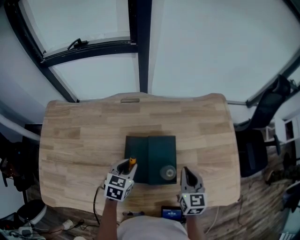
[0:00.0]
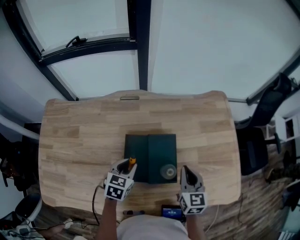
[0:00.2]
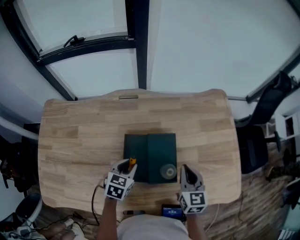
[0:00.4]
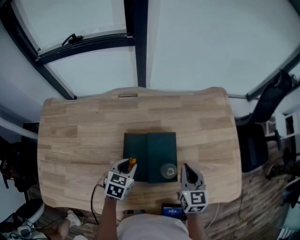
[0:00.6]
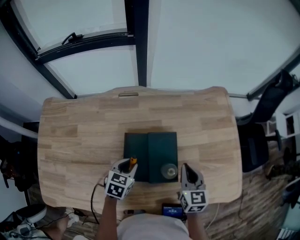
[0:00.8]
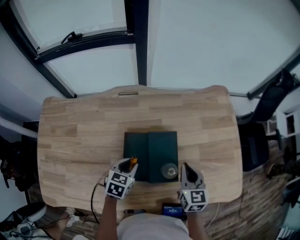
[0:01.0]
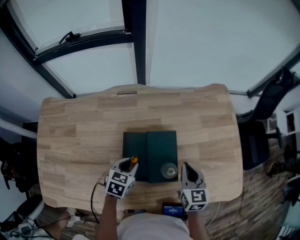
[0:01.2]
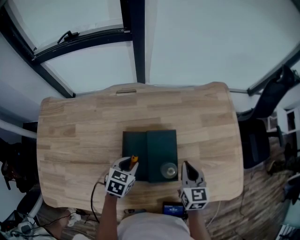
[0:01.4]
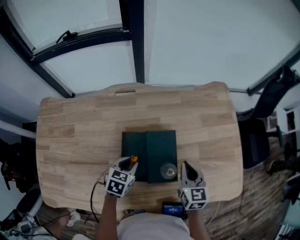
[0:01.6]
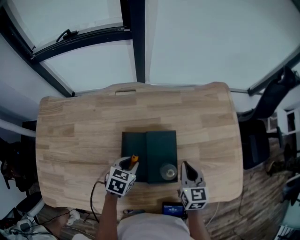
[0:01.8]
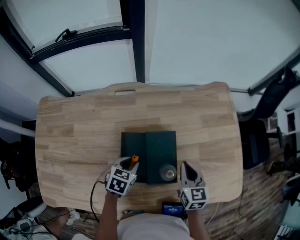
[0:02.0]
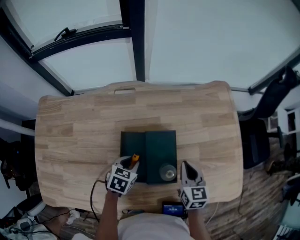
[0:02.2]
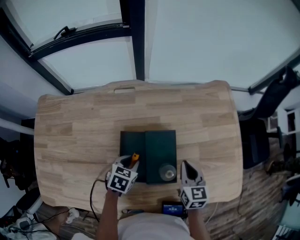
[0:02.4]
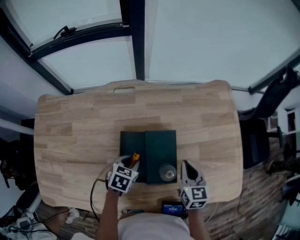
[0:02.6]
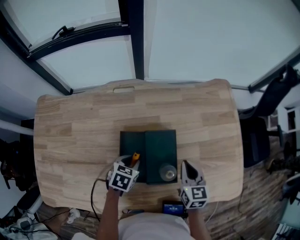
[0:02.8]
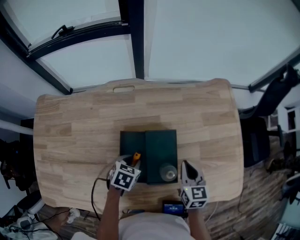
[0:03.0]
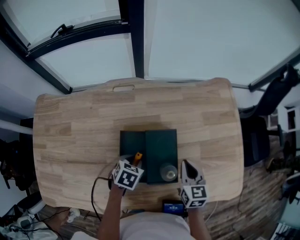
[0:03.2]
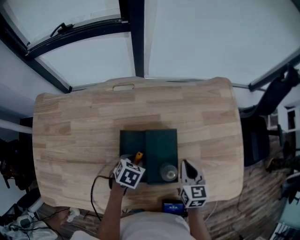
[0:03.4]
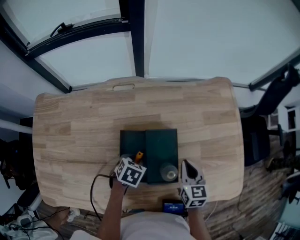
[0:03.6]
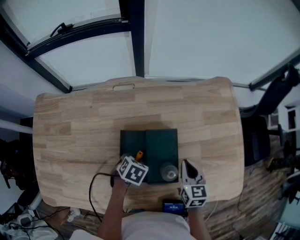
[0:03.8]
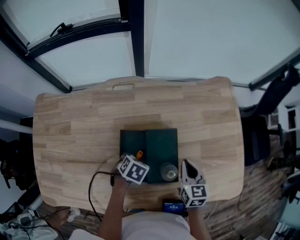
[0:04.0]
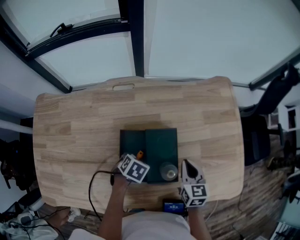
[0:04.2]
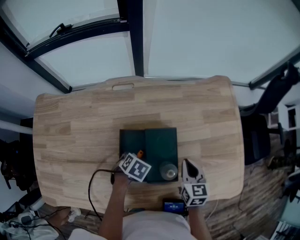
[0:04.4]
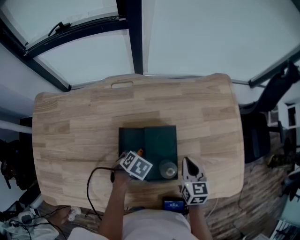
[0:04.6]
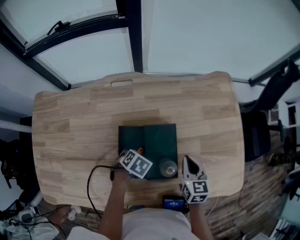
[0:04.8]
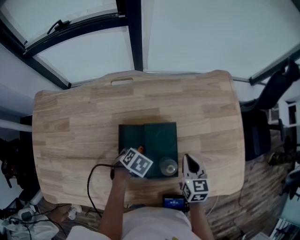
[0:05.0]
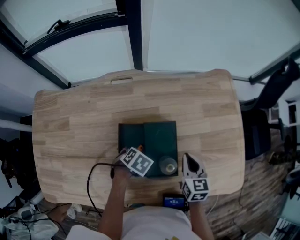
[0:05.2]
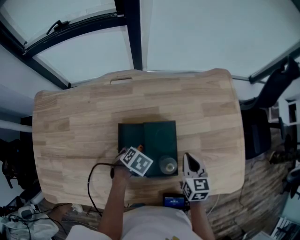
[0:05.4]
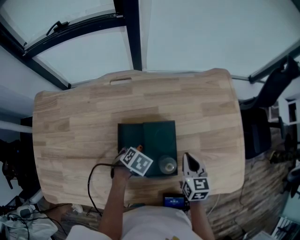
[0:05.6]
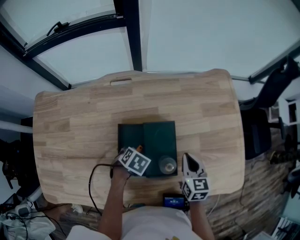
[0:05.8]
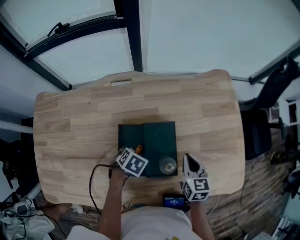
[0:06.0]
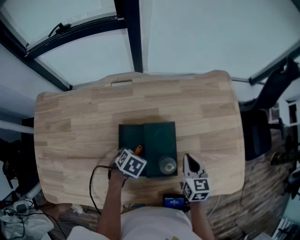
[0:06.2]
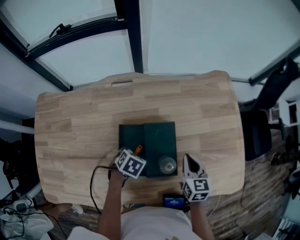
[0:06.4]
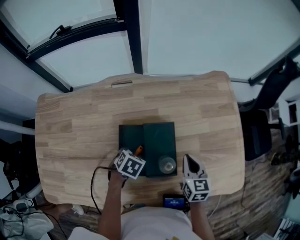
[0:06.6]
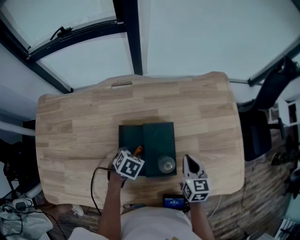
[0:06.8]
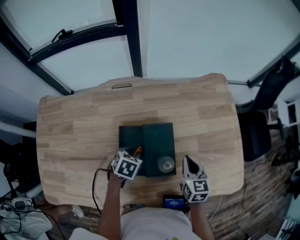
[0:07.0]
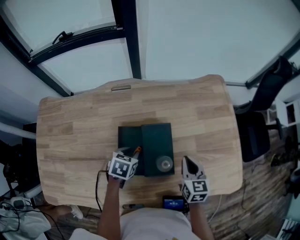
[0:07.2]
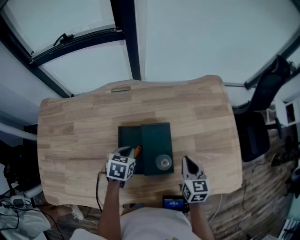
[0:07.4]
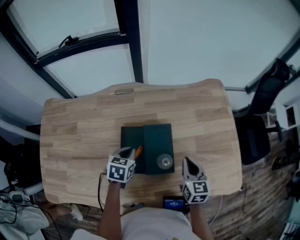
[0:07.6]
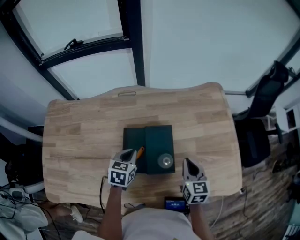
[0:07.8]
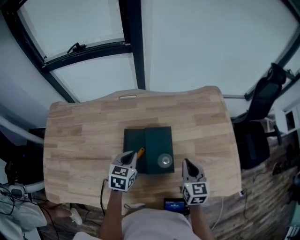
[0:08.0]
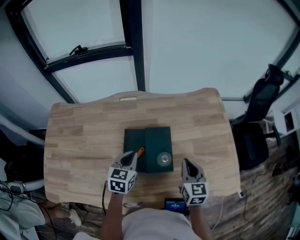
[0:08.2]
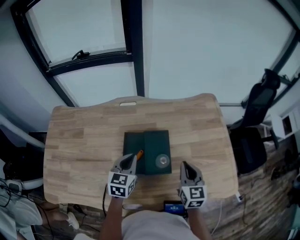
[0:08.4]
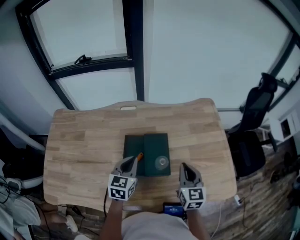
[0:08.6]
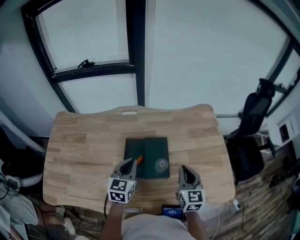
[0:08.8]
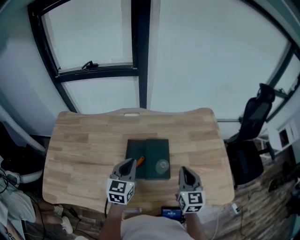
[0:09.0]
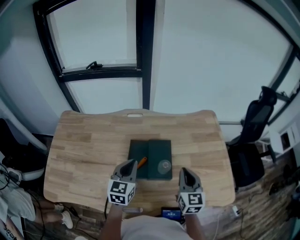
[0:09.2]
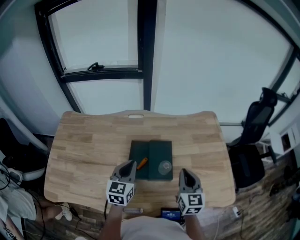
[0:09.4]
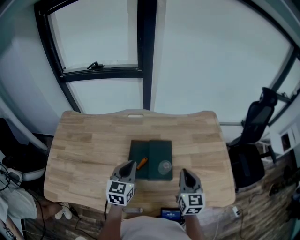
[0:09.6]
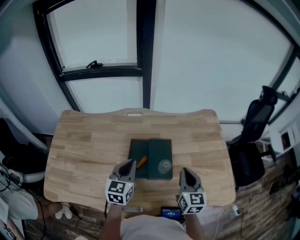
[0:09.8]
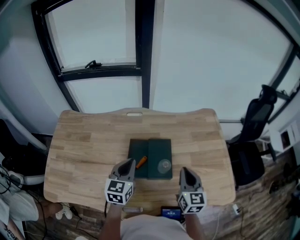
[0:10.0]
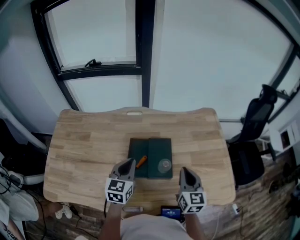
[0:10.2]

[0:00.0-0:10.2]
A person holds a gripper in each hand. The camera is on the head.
0:00.0 to 0:01.4: The grippers stay close to where they were, moving slightly.
0:01.4 to 0:03.0: There are only small adjustments of the grippers.
0:03.0 to 0:04.4: There are only small adjustments of the grippers.
0:04.4 to 0:05.8: The grippers move only a little.
0:05.8 to 0:07.2: The left gripper heads upward, covering roughly 5 cm, and rotates some 20 degrees.
0:07.2 to 0:08.8: The right gripper travels upward by some 10 cm; the left gripper is displaced upward by some 15 cm, points its fingers approximately 40 degrees further upward, and closes its fingers.
0:08.8 to 0:10.2: The grippers make only small movements.

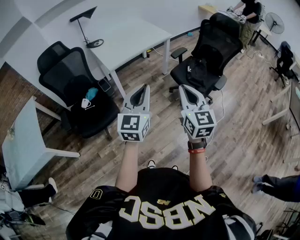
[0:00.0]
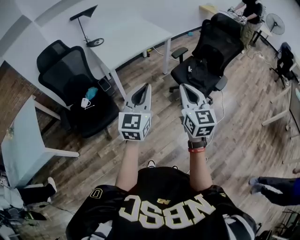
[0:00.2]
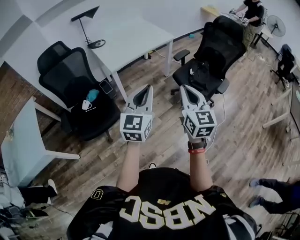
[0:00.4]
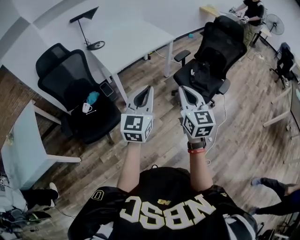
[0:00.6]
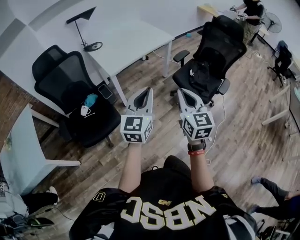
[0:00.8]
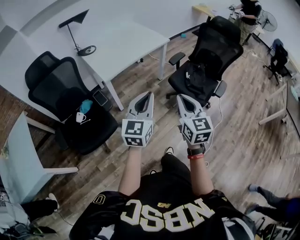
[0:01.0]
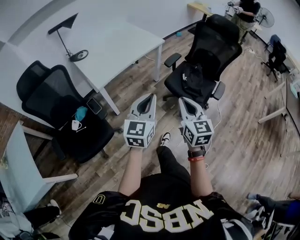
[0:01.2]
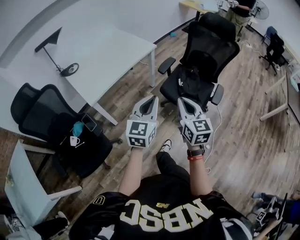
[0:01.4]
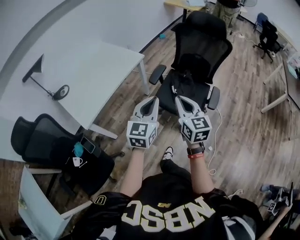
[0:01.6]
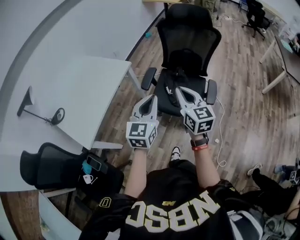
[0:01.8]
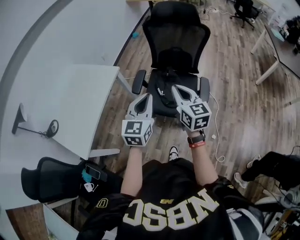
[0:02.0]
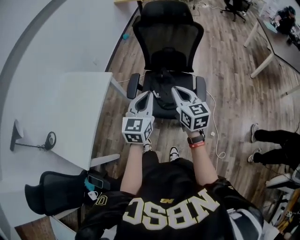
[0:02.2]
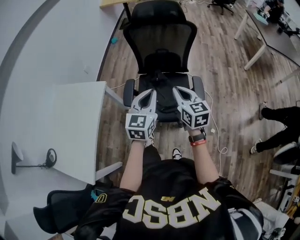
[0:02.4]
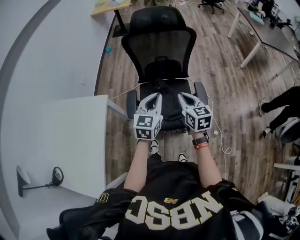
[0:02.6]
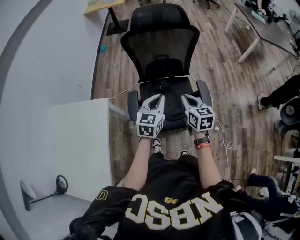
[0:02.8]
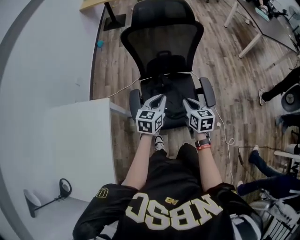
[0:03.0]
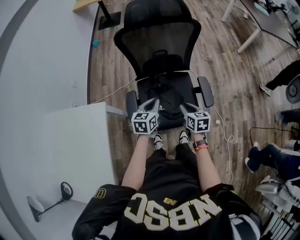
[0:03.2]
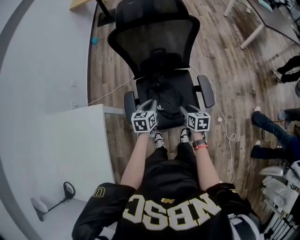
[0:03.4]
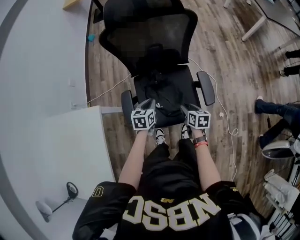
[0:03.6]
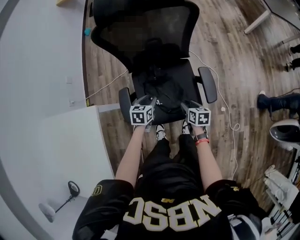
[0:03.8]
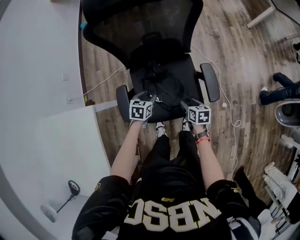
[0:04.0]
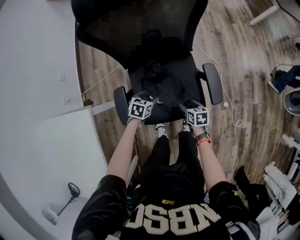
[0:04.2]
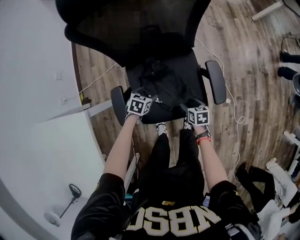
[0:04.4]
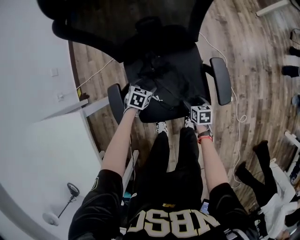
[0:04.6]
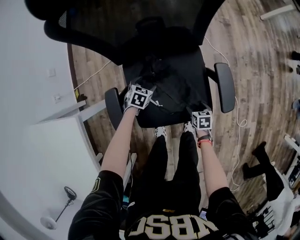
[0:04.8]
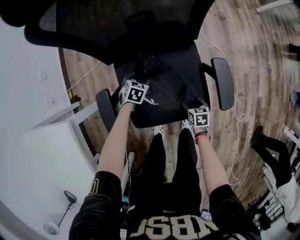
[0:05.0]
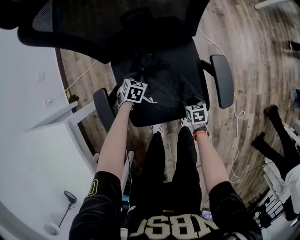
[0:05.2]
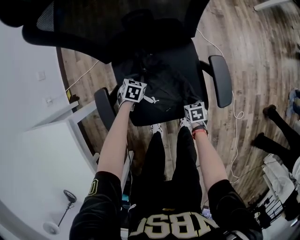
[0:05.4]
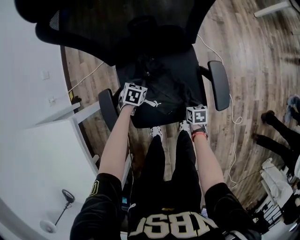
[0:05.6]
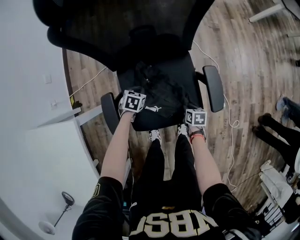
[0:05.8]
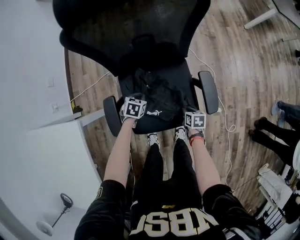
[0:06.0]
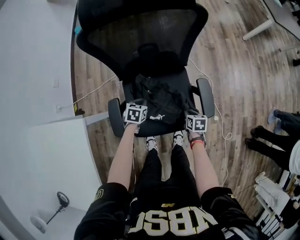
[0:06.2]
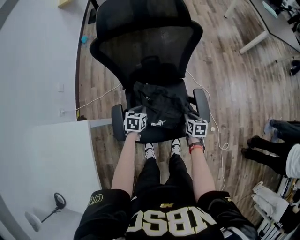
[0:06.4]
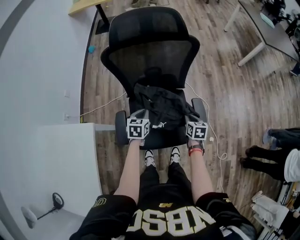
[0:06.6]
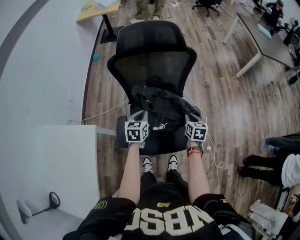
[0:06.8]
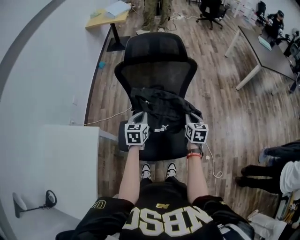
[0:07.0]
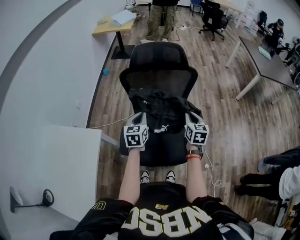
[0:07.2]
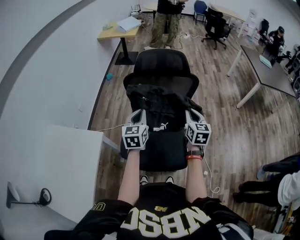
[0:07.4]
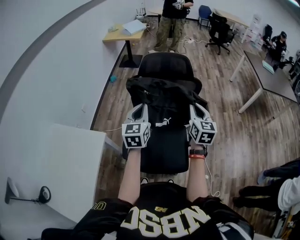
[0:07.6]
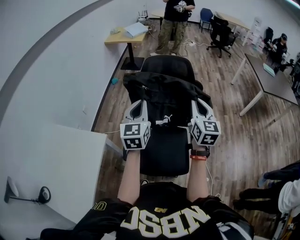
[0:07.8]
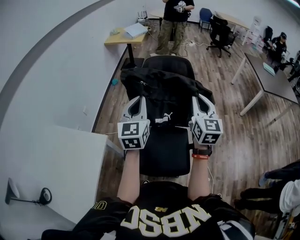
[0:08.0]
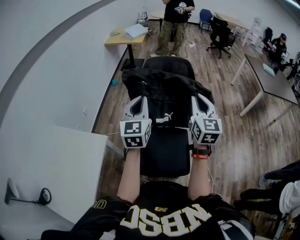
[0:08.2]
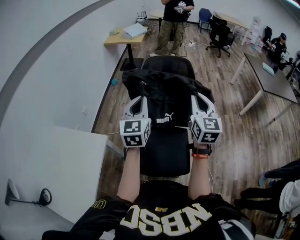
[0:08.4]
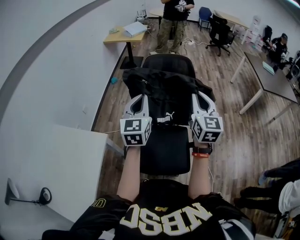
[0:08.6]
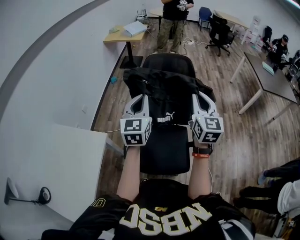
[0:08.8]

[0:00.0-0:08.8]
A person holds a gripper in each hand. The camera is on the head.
0:00.0 to 0:01.4: The left gripper travels forward by about 25 cm; the right gripper moves forward and downward, about 25 cm.
0:01.4 to 0:03.0: The pair of grippers is taken about 40 cm. The left gripper turns by roughly 50 degrees. Meanwhile the right gripper rotates some 50 degrees.
0:03.0 to 0:04.4: The grippers both shift downward by about 35 cm. The right gripper swivels about 30 degrees, and opens its fingers; the left gripper points its fingers roughly 40 degrees further downward, and opens up.
0:04.4 to 0:05.8: The right gripper heads downward, covering about 5 cm, and closes, while the left gripper shifts some 5 cm forward, and closes its fingers.
0:05.8 to 0:07.4: The grippers both shift upward by about 50 cm. The left gripper tilts its fingers approximately 50 degrees upward. The right gripper tilts its fingers about 50 degrees upward.
0:07.4 to 0:08.8: The two grippers go about 15 cm upward. The right gripper turns by some 20 degrees.

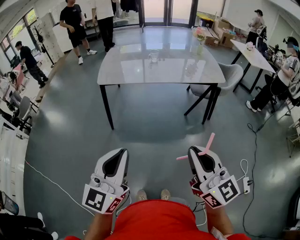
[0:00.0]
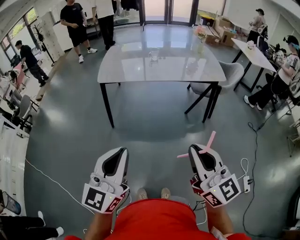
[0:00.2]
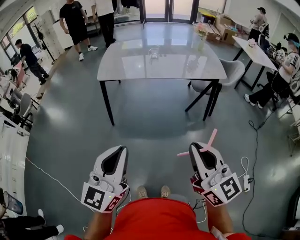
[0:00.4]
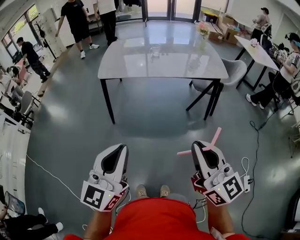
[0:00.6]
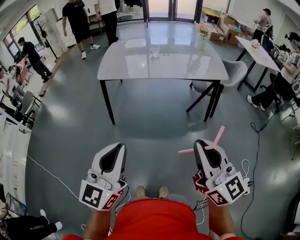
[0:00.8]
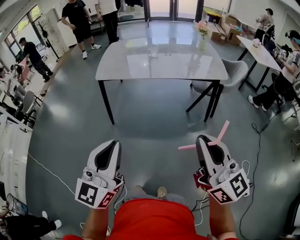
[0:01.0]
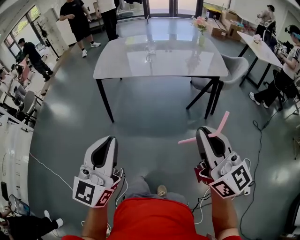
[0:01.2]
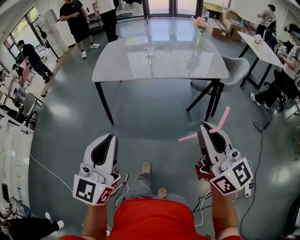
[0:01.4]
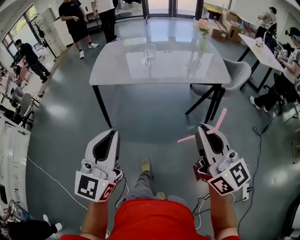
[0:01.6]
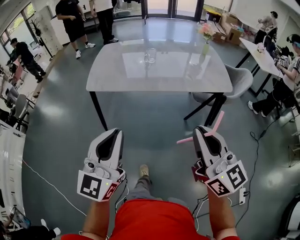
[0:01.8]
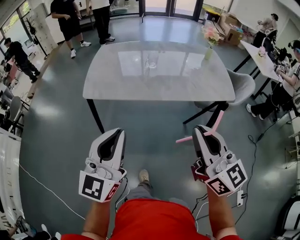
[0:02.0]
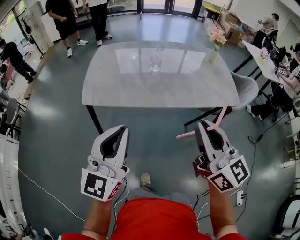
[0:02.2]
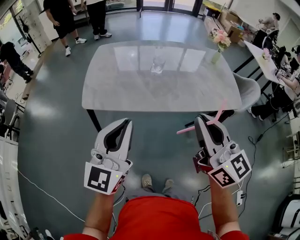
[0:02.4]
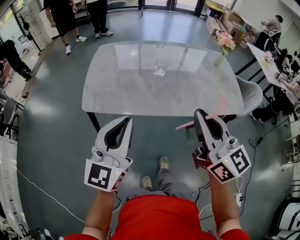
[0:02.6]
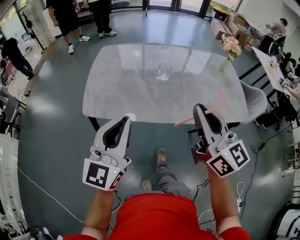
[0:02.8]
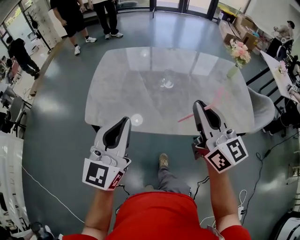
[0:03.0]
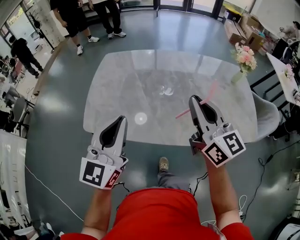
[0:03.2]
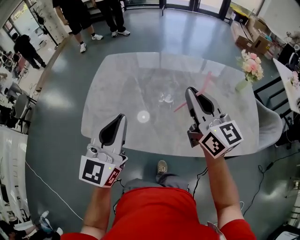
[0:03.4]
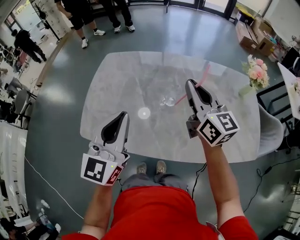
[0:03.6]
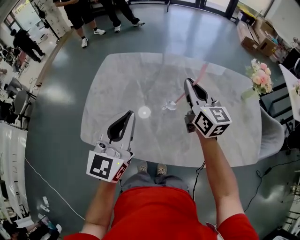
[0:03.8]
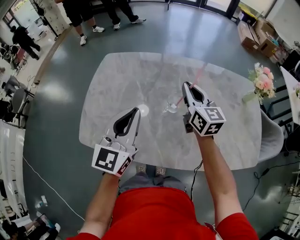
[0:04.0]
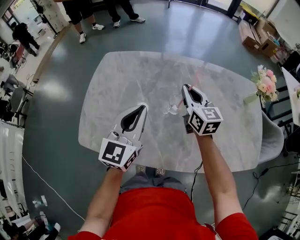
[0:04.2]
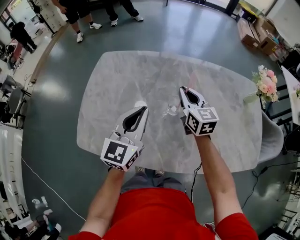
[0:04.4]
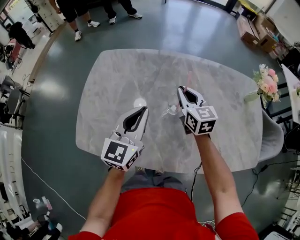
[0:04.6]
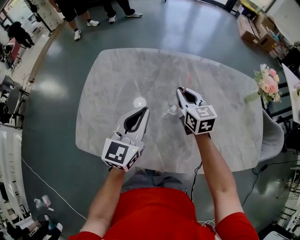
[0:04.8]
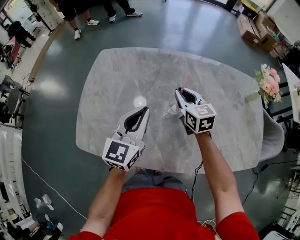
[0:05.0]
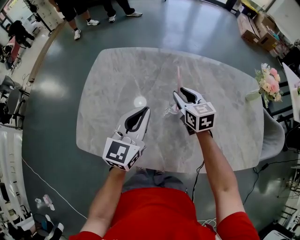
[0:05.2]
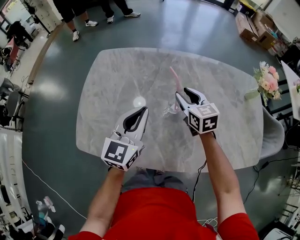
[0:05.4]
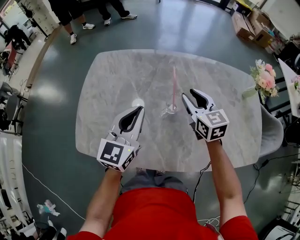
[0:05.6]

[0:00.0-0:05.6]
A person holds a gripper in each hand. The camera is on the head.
0:00.0 to 0:01.4: Both grippers travel together to the right and forward, some 10 cm.
0:01.4 to 0:02.8: The pair of grippers is taken forward, roughly 40 cm.
0:02.8 to 0:04.2: The right gripper goes some 40 cm forward and downward. Meanwhile the left gripper goes about 30 cm forward.
0:04.2 to 0:05.6: The right gripper opens its fingers.
